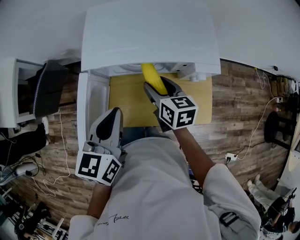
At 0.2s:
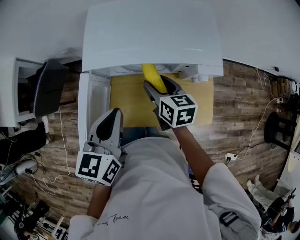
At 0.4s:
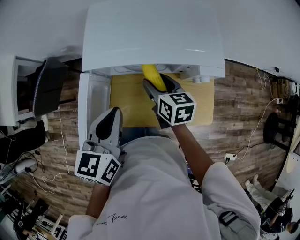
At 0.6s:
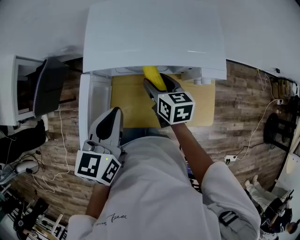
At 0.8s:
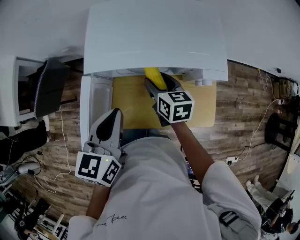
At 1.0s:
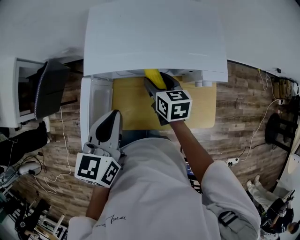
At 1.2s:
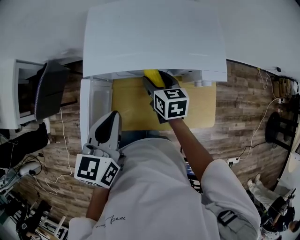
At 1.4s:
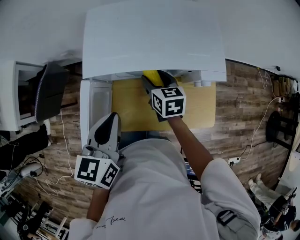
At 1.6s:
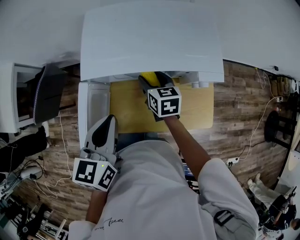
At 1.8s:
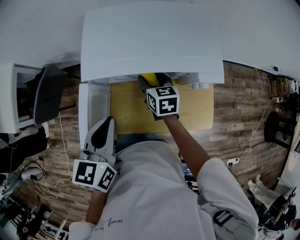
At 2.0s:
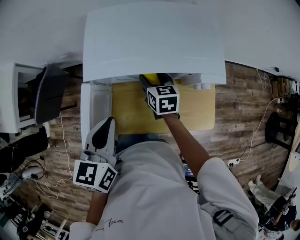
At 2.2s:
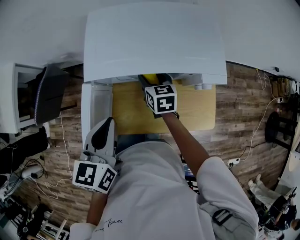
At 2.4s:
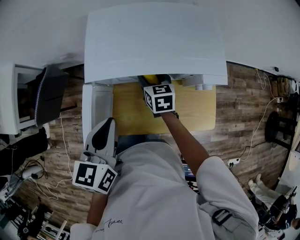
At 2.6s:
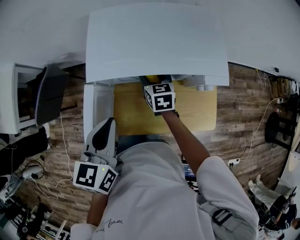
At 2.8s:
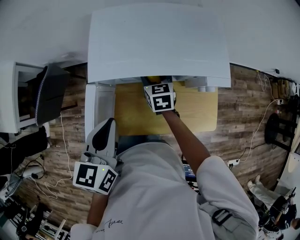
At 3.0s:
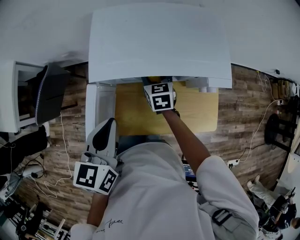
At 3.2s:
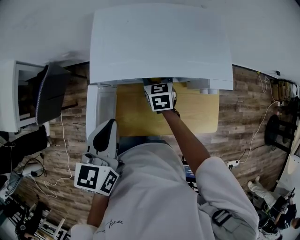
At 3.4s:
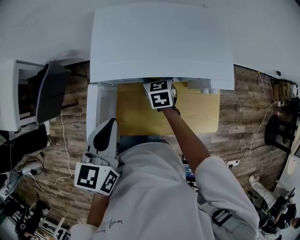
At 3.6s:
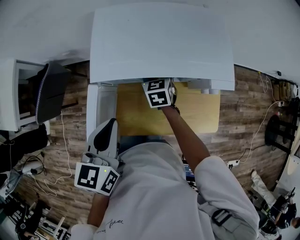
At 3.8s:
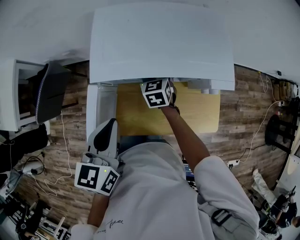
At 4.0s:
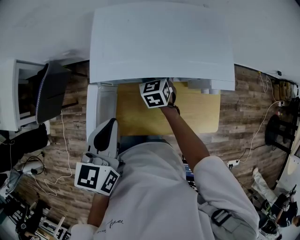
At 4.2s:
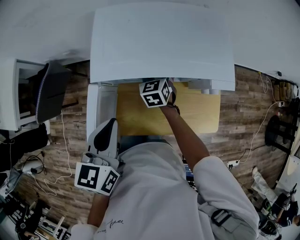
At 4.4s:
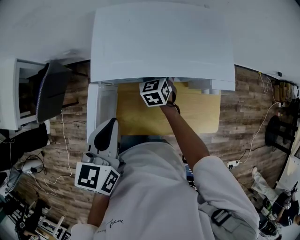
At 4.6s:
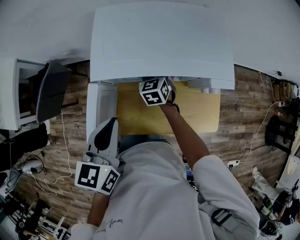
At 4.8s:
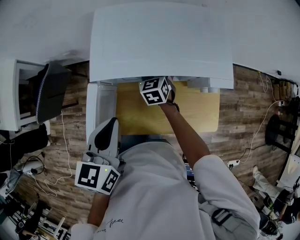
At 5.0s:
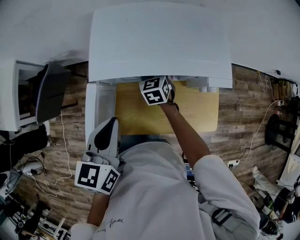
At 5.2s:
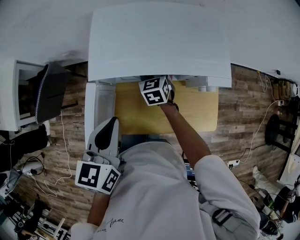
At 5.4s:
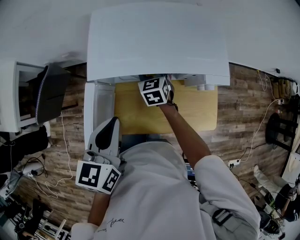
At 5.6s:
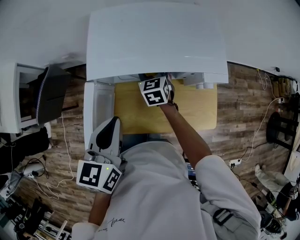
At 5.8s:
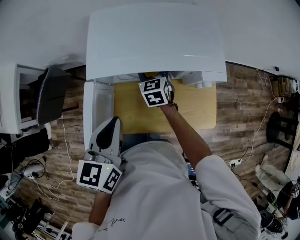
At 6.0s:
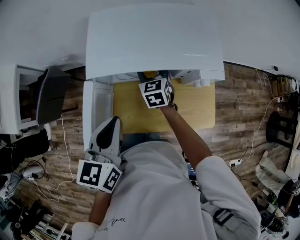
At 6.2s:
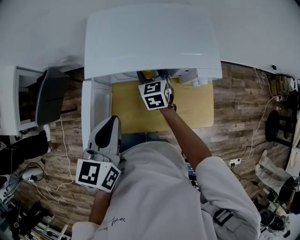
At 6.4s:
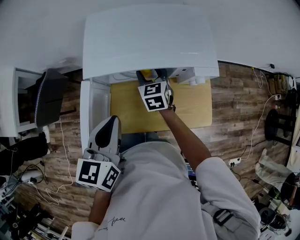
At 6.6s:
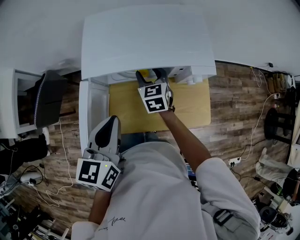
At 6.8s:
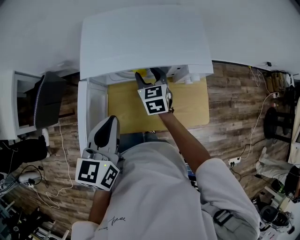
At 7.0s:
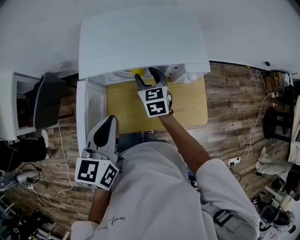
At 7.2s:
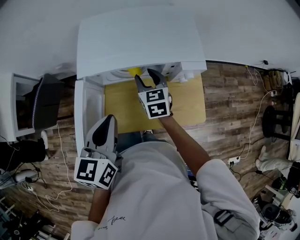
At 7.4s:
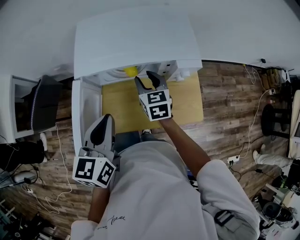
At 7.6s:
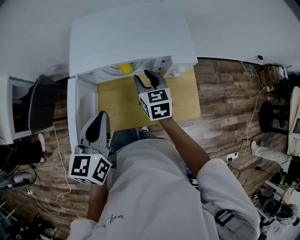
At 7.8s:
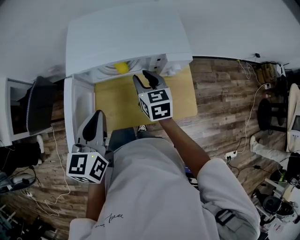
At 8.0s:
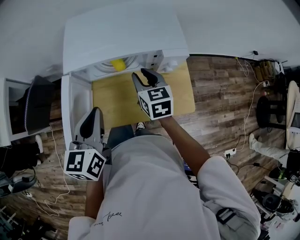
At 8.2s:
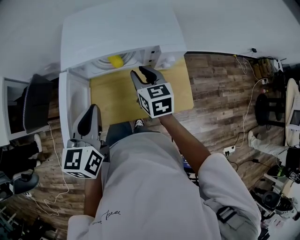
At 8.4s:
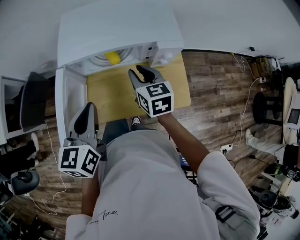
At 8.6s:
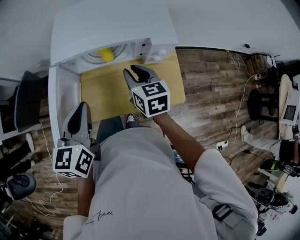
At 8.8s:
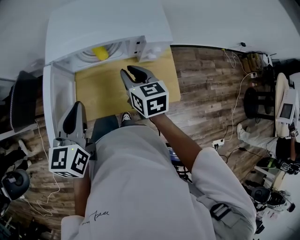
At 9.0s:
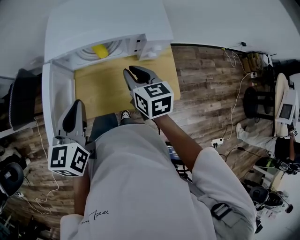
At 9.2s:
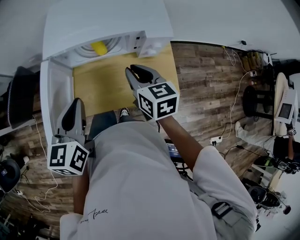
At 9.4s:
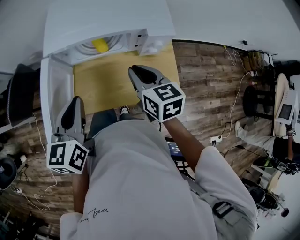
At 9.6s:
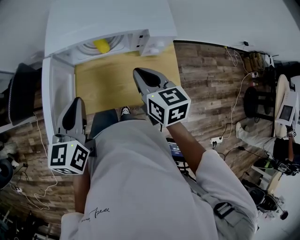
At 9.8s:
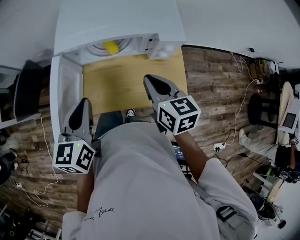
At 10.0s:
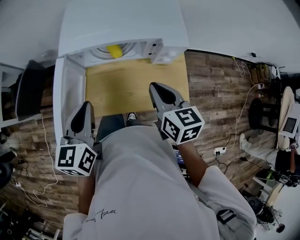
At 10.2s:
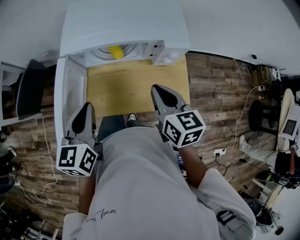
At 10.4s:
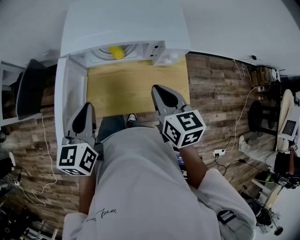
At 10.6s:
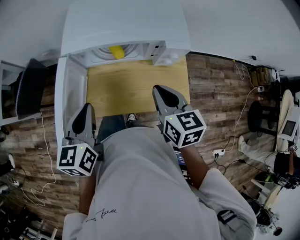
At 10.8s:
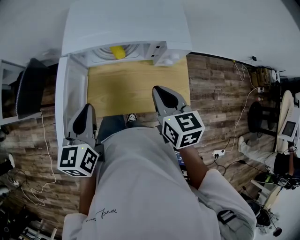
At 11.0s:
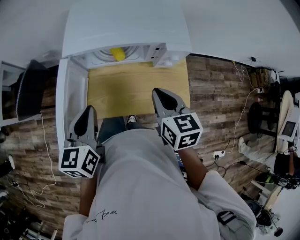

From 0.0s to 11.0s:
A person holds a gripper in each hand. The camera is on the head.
From 0.0s to 1.6s: The right gripper shifts roughly 10 cm forward and downward.
From 1.6s to 3.2s: The right gripper changes place by roughly 5 cm.
From 3.2s to 4.8s: The grippers make only small movements.
From 4.8s to 6.2s: The right gripper ends up approximately 5 cm from where it was.
From 6.2s to 7.8s: The right gripper is displaced backward, to the right and upward by some 15 cm, and closes.
From 7.8s to 9.4s: The right gripper travels backward by roughly 10 cm, and closes.
From 9.4s to 11.0s: The grippers move only a little.

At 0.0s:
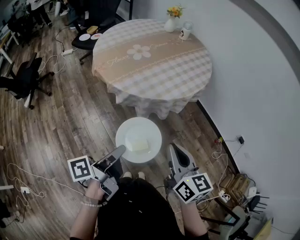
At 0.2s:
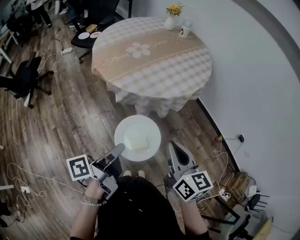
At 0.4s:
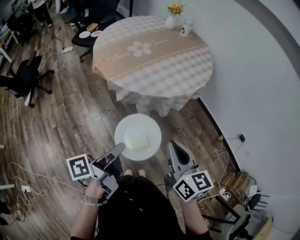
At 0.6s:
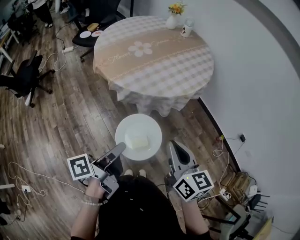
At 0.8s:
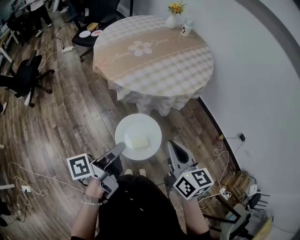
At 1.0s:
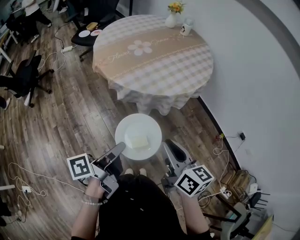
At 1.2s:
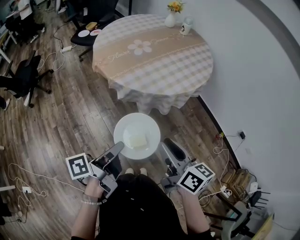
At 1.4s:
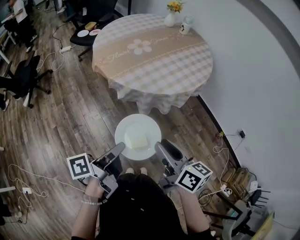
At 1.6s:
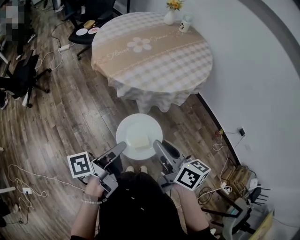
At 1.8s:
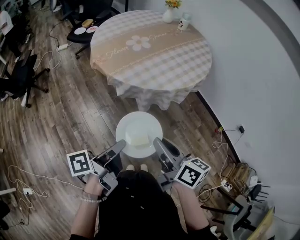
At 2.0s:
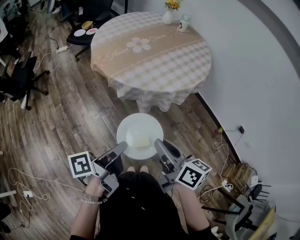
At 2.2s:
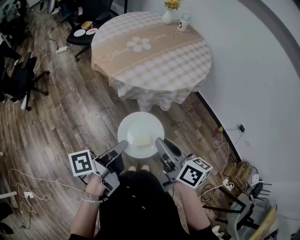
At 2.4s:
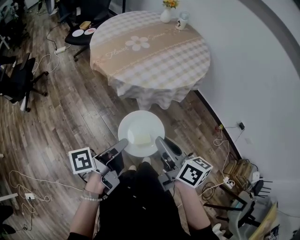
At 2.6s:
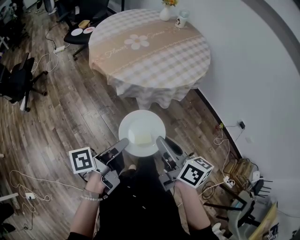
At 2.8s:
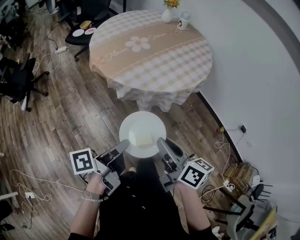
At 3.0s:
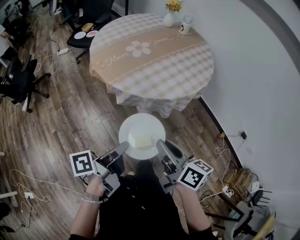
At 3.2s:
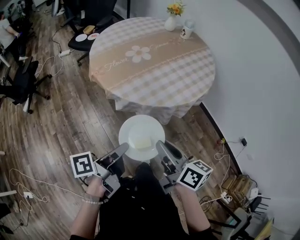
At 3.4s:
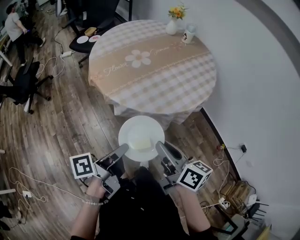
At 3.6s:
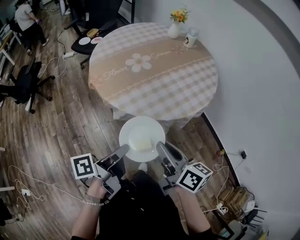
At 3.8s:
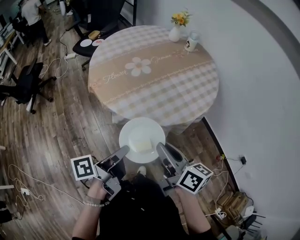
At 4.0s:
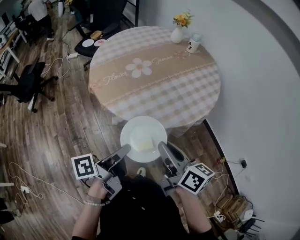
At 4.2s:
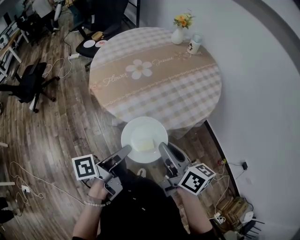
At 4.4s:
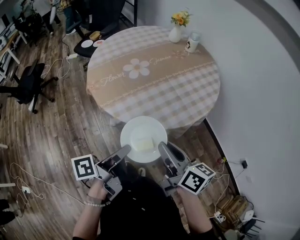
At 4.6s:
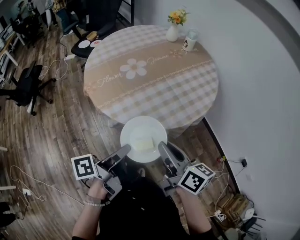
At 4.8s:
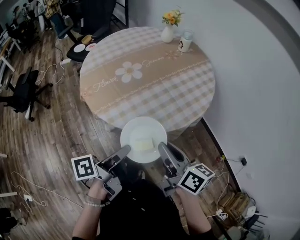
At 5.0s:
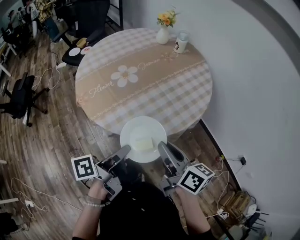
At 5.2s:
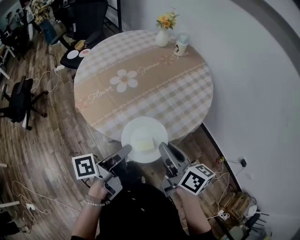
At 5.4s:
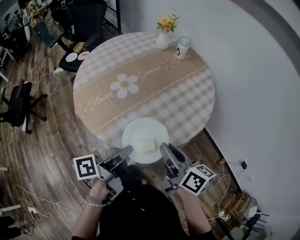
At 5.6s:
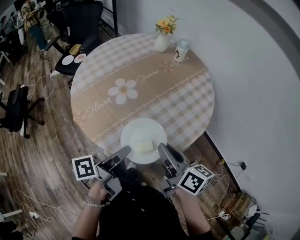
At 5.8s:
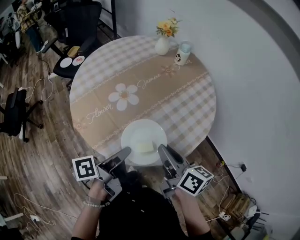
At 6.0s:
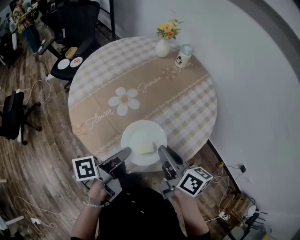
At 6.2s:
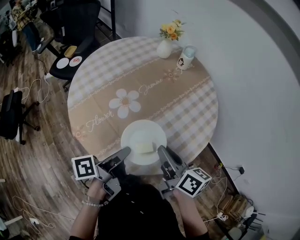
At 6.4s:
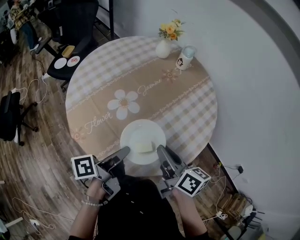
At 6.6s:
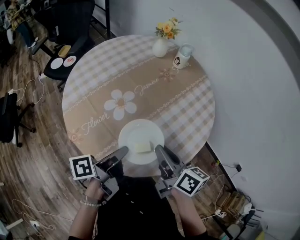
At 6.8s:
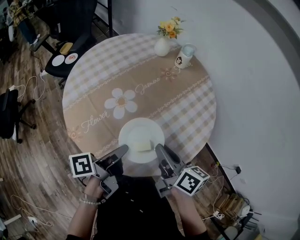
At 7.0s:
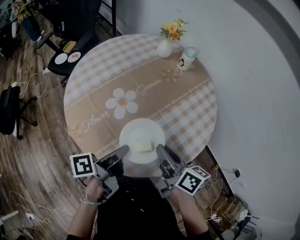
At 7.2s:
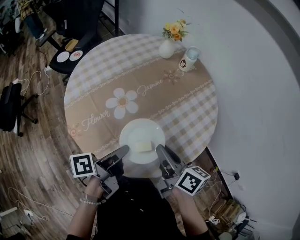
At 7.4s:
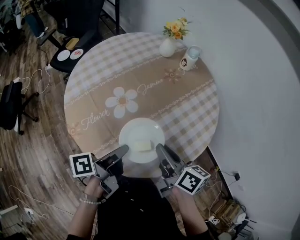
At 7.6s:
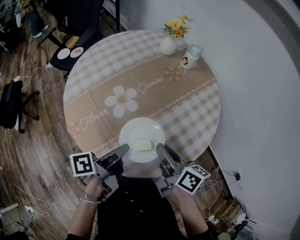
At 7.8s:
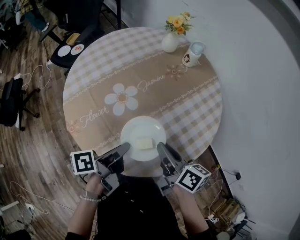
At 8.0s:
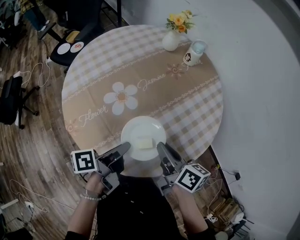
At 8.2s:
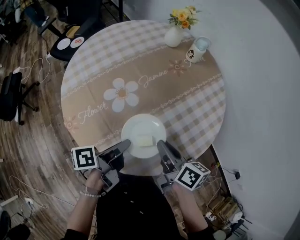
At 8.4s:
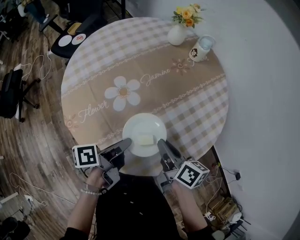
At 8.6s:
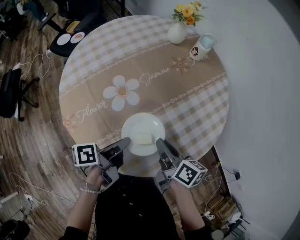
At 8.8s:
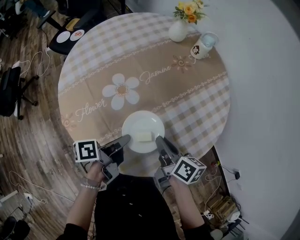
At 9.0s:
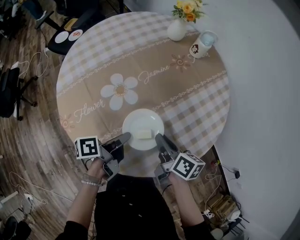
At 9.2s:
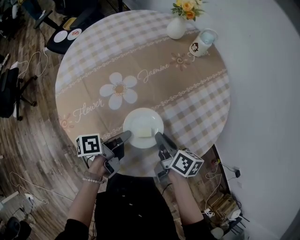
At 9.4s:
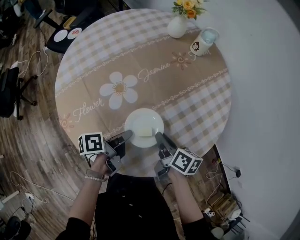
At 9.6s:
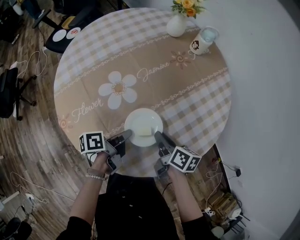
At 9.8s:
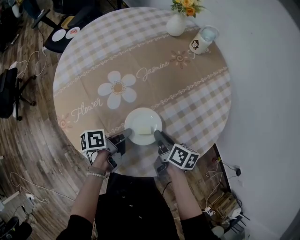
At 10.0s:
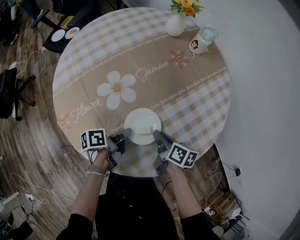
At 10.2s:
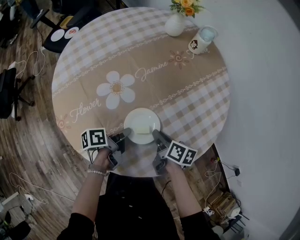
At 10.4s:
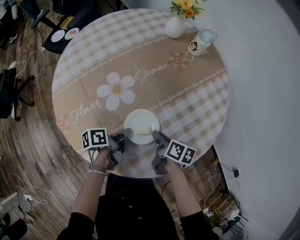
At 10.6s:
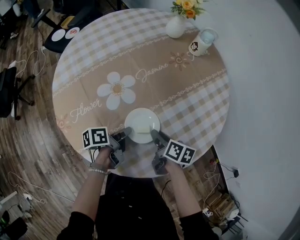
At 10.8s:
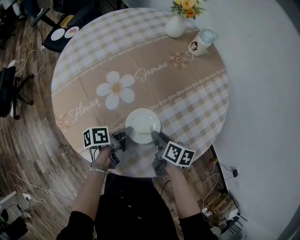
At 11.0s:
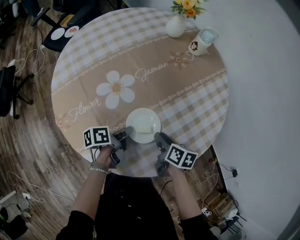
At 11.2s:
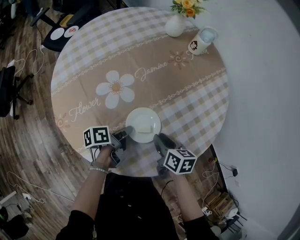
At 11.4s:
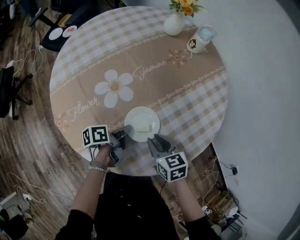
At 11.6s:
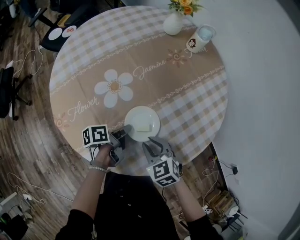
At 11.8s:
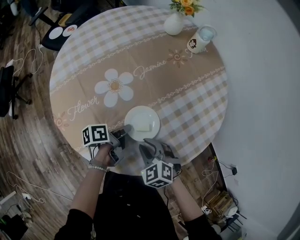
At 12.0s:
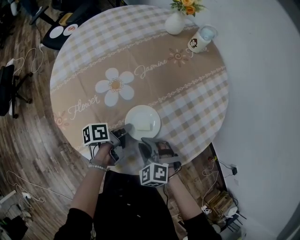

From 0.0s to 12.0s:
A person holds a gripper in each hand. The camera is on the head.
From 0.0s to 1.6s: The right gripper moves roughly 5 cm, and changes its angle by some 30 degrees.
From 3.0s to 4.4s: The right gripper changes place by about 20 cm.
From 4.4s to 6.0s: The right gripper ends up approximately 20 cm from where it was.
From 6.0s to 7.6s: The right gripper changes place by some 5 cm.
From 7.6s to 9.0s: The right gripper travels downward by approximately 10 cm.
From 9.0s to 10.4s: The right gripper travels downward by approximately 10 cm.
From 10.4s to 12.0s: The right gripper shifts by about 10 cm, and twists some 100 degrees counterclockwise, seen from behind.

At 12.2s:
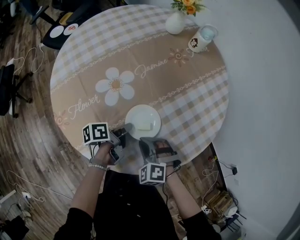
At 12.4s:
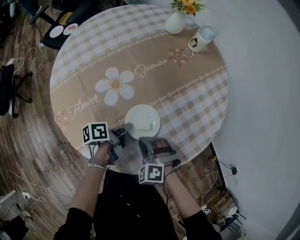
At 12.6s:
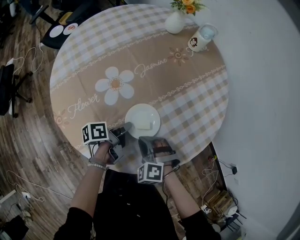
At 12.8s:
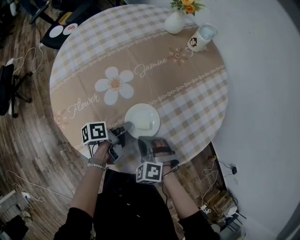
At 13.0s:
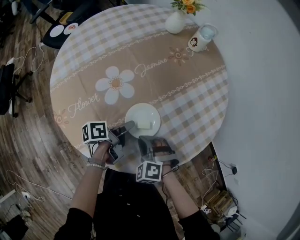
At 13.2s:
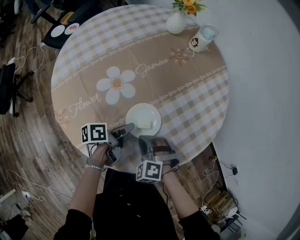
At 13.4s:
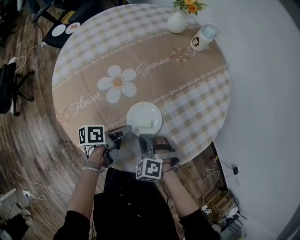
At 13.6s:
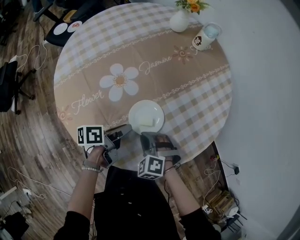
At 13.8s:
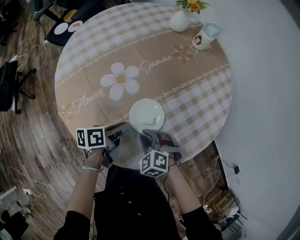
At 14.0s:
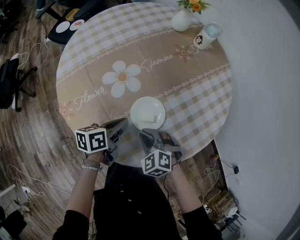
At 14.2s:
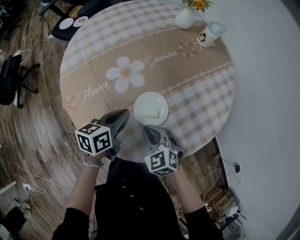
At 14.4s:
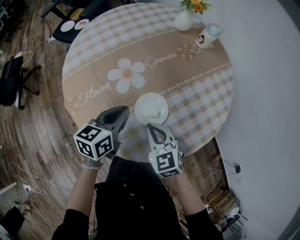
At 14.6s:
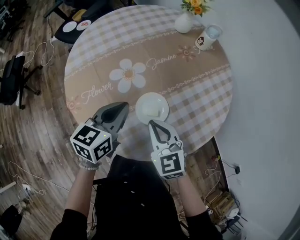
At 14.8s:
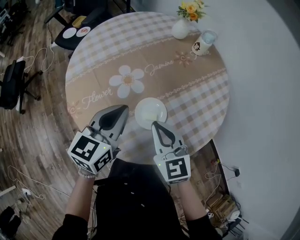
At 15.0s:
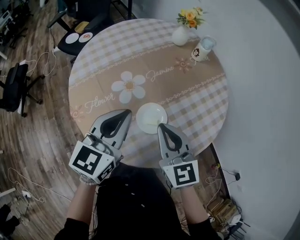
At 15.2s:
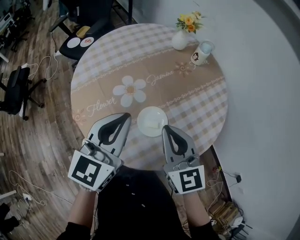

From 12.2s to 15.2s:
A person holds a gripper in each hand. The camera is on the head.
From 13.8s to 15.2s: The right gripper shifts roughly 30 cm upward, and tips its fingers upward by some 50 degrees.
